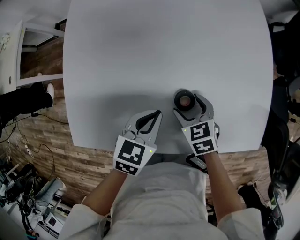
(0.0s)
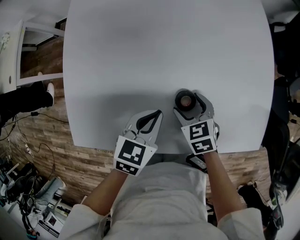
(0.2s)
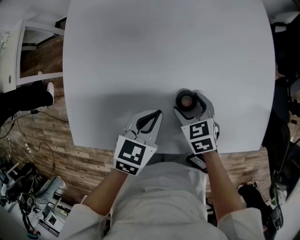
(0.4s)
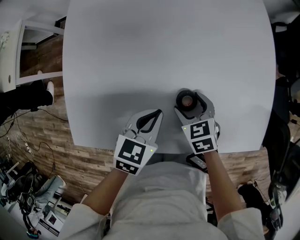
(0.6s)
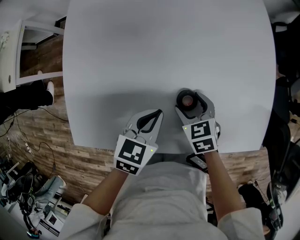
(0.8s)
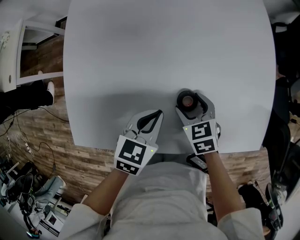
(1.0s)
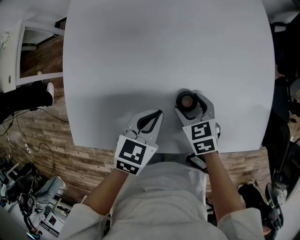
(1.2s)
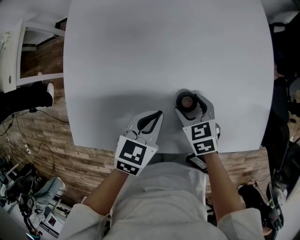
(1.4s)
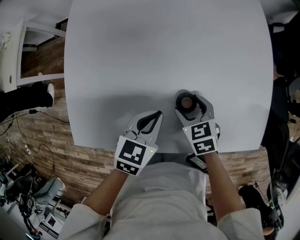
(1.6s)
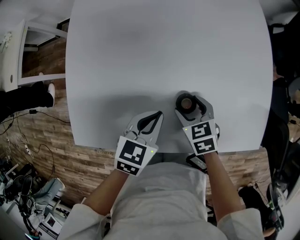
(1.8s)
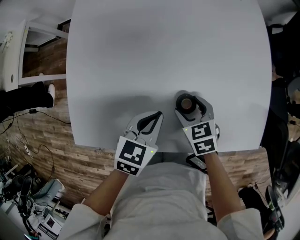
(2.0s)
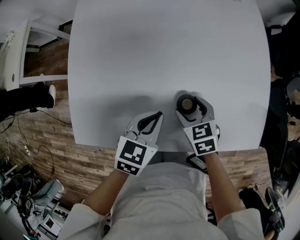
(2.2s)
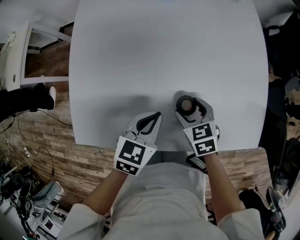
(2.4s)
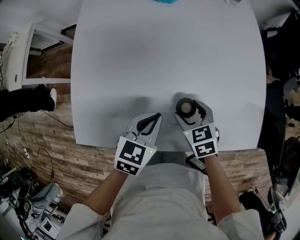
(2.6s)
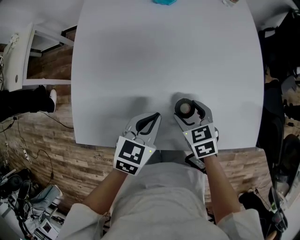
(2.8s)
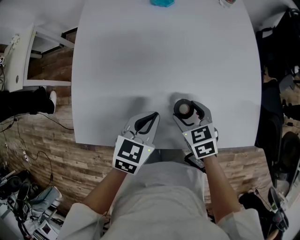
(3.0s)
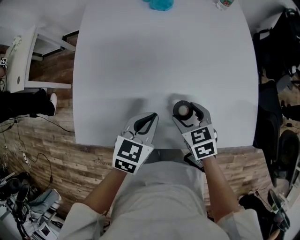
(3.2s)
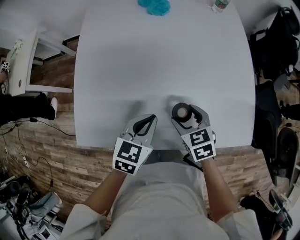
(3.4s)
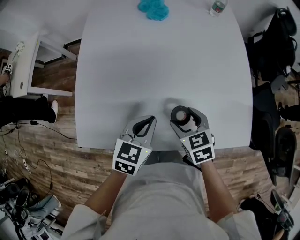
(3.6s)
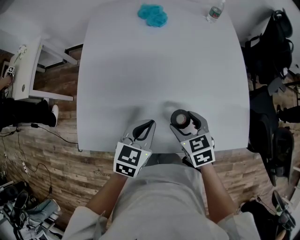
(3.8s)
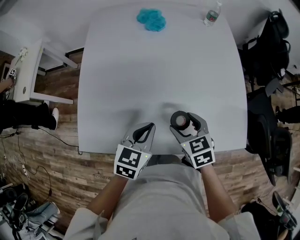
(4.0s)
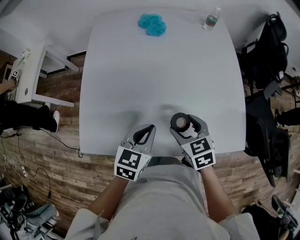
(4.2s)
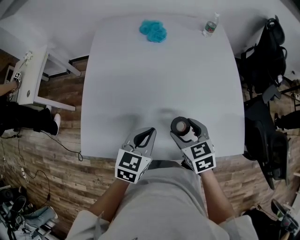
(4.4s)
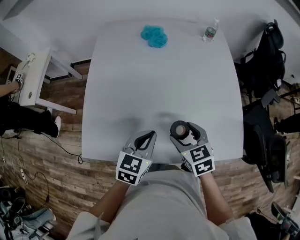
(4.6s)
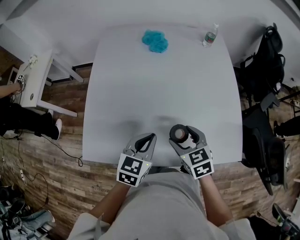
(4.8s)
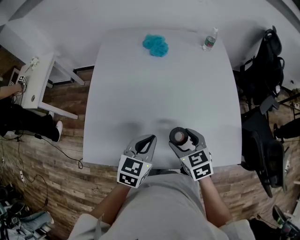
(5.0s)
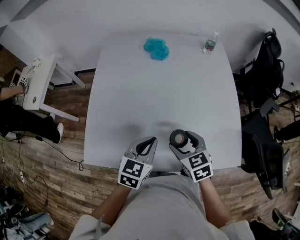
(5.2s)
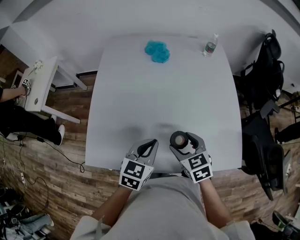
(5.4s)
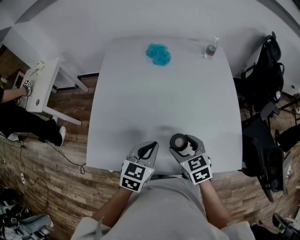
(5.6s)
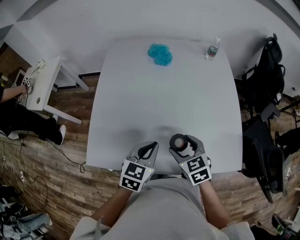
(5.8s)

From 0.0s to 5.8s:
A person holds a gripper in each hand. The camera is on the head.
From 0.0s to 1.4s: The two grippers keep their place.
From 1.4s to 2.8s: The right gripper changes place by about 5 cm.
From 2.8s to 4.4s: Both grippers move upward, some 10 cm.
From 4.4s to 5.8s: The grippers make only small movements.

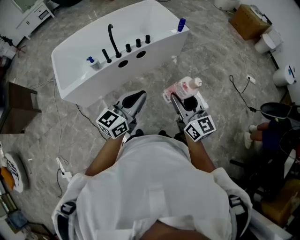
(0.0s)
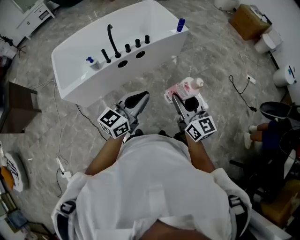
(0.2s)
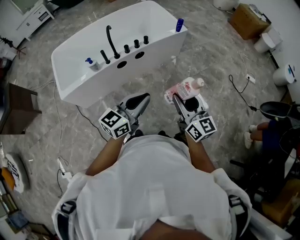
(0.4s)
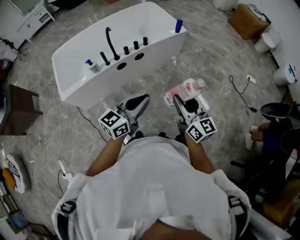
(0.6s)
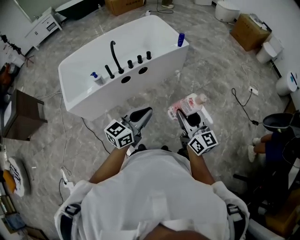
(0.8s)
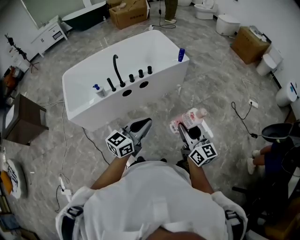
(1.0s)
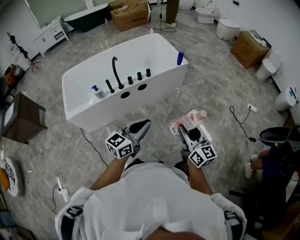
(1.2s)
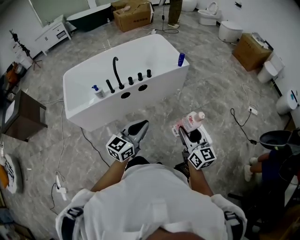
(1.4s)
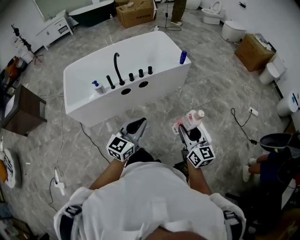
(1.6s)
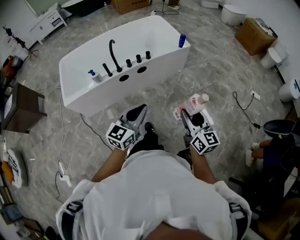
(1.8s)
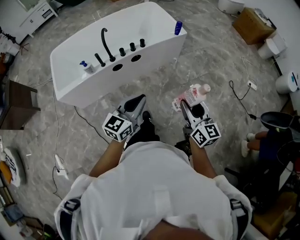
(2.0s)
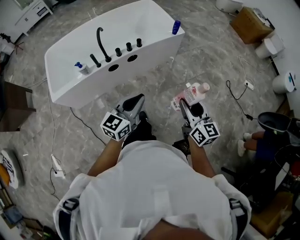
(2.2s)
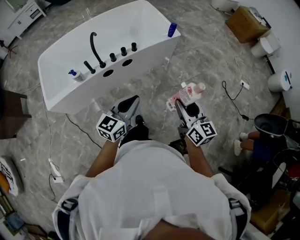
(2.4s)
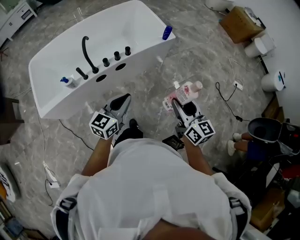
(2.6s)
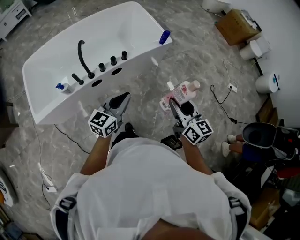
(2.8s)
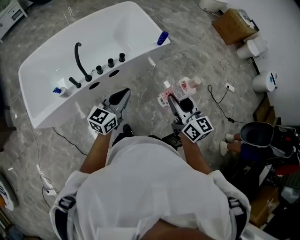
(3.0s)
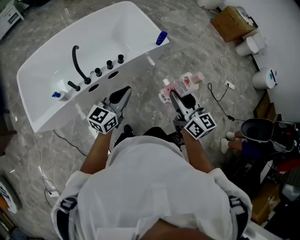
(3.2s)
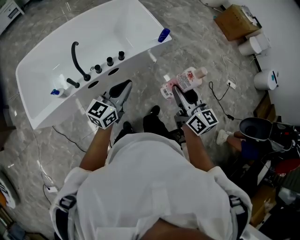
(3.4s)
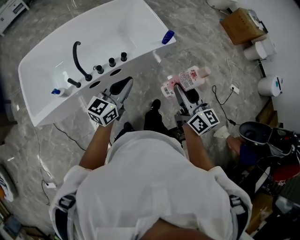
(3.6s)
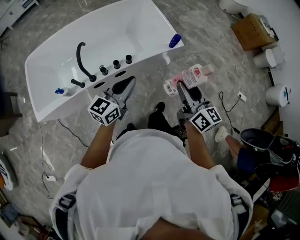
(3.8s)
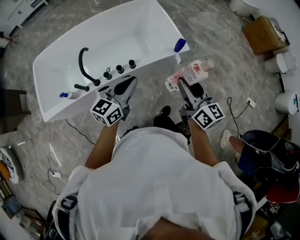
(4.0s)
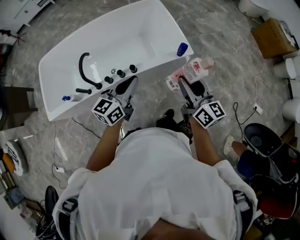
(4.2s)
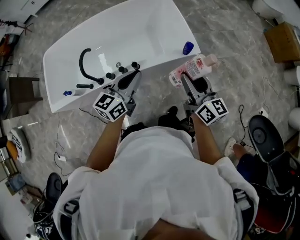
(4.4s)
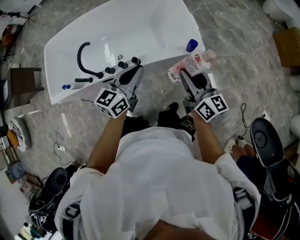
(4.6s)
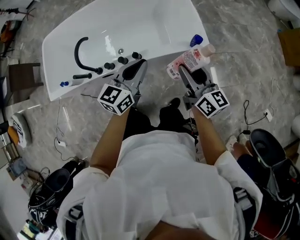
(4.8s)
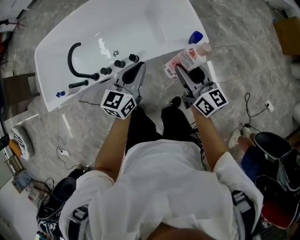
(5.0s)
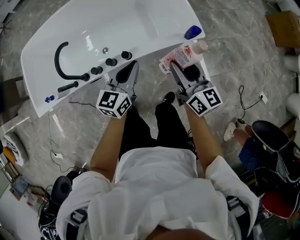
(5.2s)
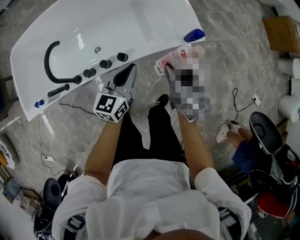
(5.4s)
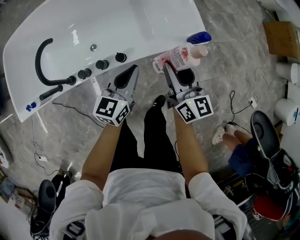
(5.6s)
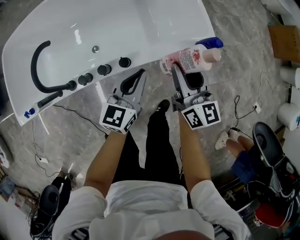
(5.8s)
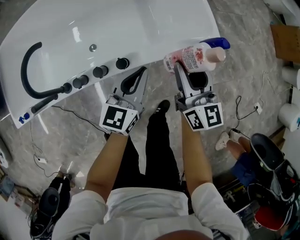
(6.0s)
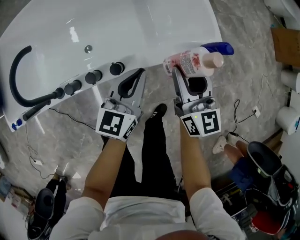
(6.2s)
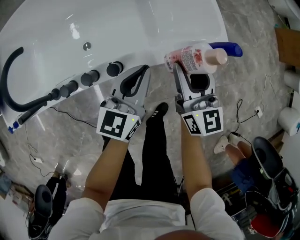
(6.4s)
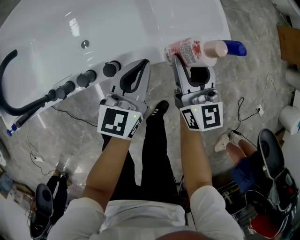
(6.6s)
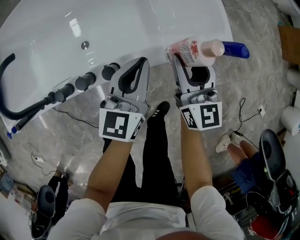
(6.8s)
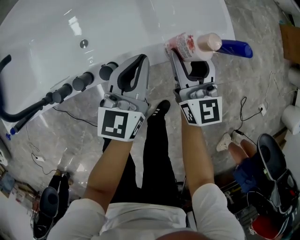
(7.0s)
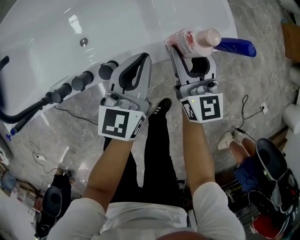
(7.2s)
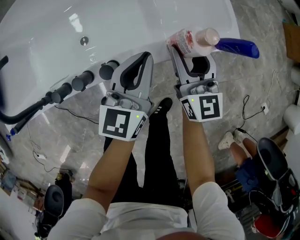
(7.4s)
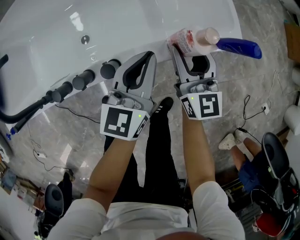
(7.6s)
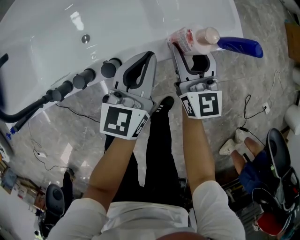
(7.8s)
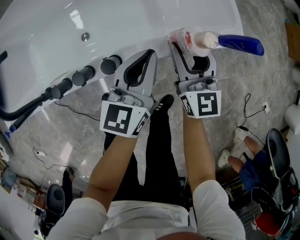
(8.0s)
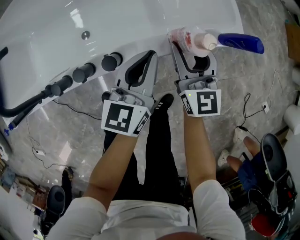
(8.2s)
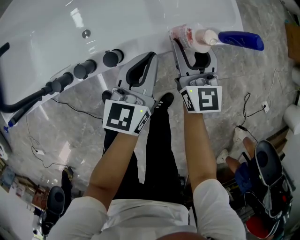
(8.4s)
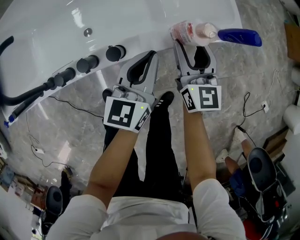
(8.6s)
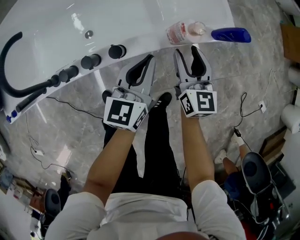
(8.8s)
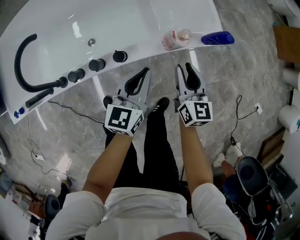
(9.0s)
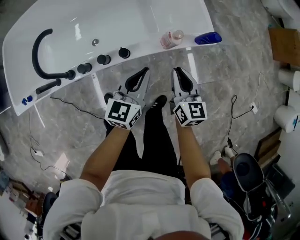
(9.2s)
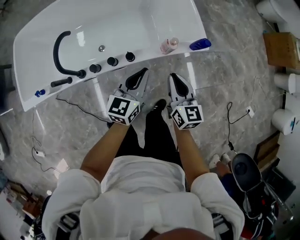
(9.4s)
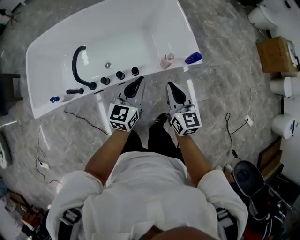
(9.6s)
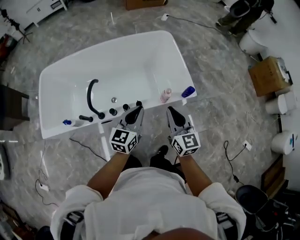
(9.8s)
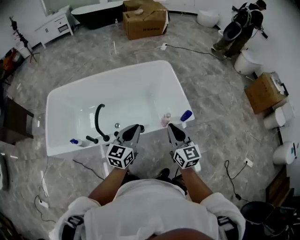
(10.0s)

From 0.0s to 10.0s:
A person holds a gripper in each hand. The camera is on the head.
From 0.0s to 1.4s: The left gripper travels to the right by roughly 10 cm. Meanwhile the right gripper moves to the right, approximately 10 cm.
From 1.4s to 2.8s: The grippers both shift forward by approximately 25 cm.
From 2.8s to 4.2s: Both grippers travel together forward, approximately 30 cm.
From 4.2s to 5.8s: The grippers both shift downward and forward by roughly 30 cm.
From 5.8s to 7.2s: The two grippers go about 15 cm downward and forward.
From 7.2s to 8.6s: The grippers stay close to where they were, moving slightly.
From 8.6s to 10.0s: The right gripper goes about 40 cm upward and backward, and closes up. The left gripper moves upward, some 35 cm.

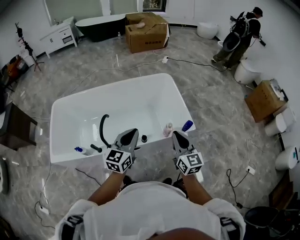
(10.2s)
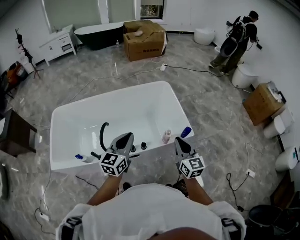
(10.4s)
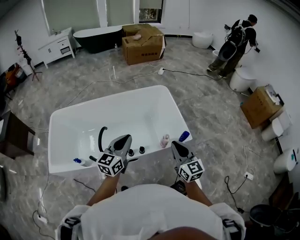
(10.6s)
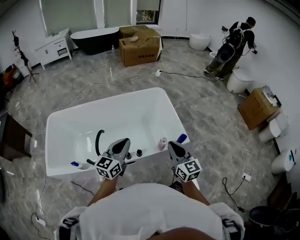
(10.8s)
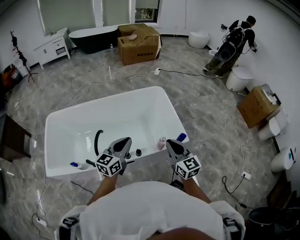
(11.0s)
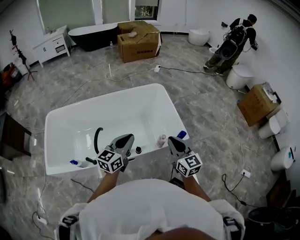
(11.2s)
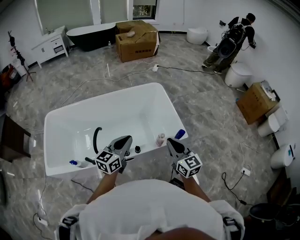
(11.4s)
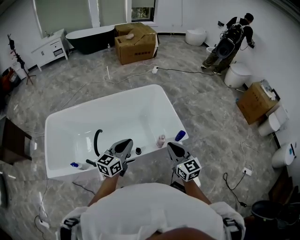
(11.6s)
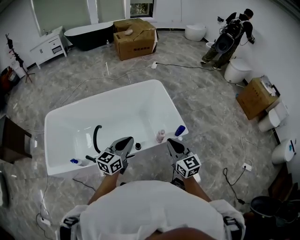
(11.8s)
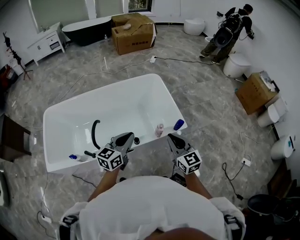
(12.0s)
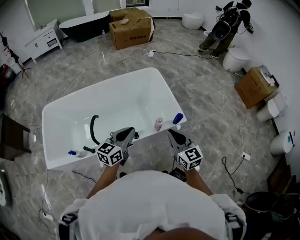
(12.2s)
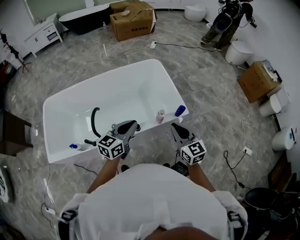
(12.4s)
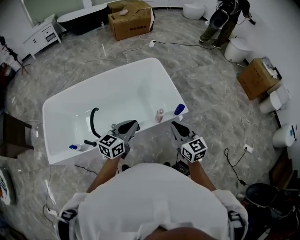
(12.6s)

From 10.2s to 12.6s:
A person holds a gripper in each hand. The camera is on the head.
From 10.2s to 11.4s: The grippers make only small movements.
From 11.4s to 12.6s: The left gripper changes place by approximately 5 cm.

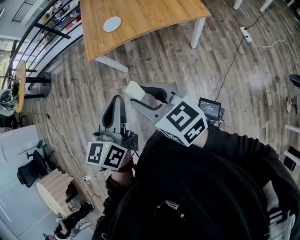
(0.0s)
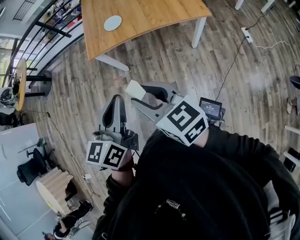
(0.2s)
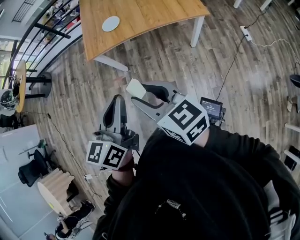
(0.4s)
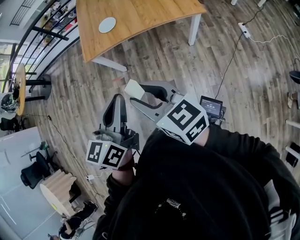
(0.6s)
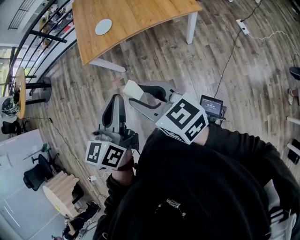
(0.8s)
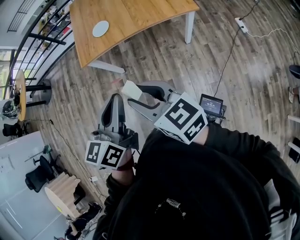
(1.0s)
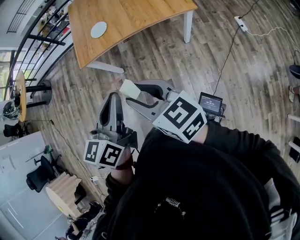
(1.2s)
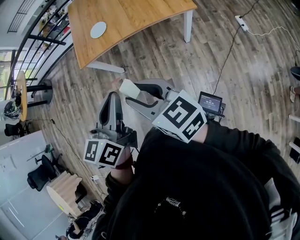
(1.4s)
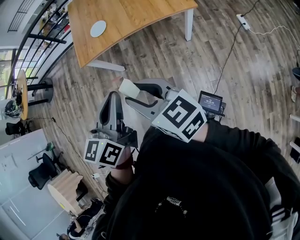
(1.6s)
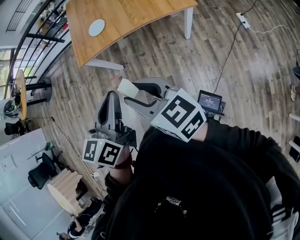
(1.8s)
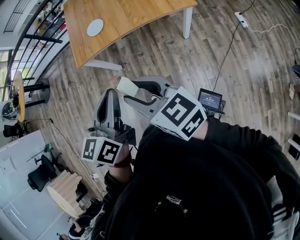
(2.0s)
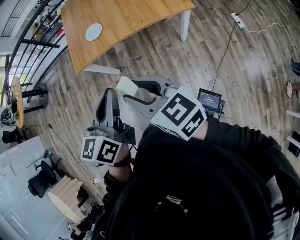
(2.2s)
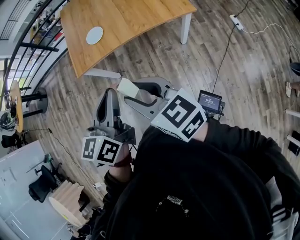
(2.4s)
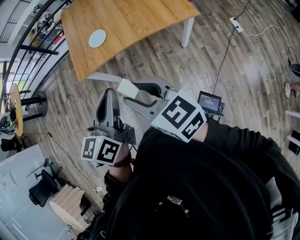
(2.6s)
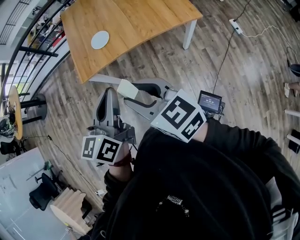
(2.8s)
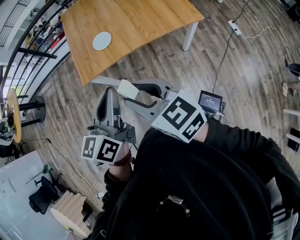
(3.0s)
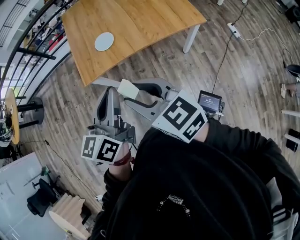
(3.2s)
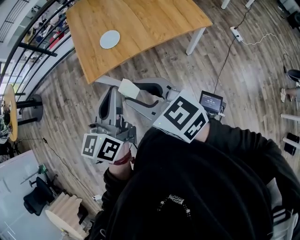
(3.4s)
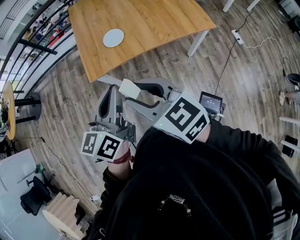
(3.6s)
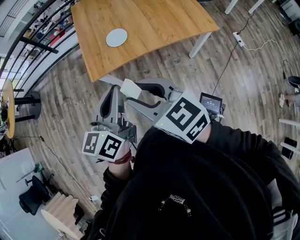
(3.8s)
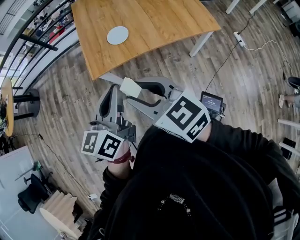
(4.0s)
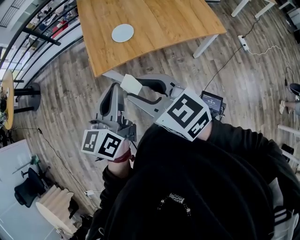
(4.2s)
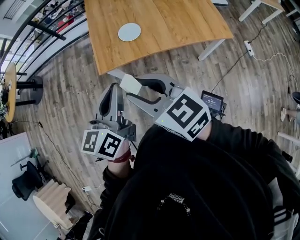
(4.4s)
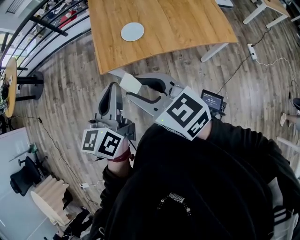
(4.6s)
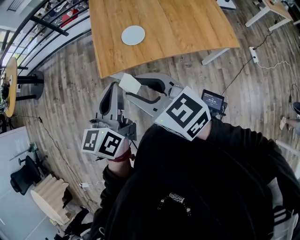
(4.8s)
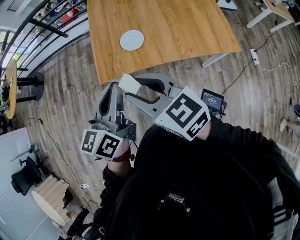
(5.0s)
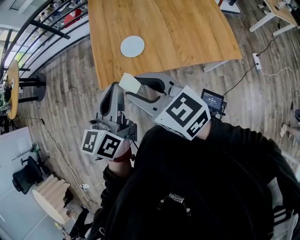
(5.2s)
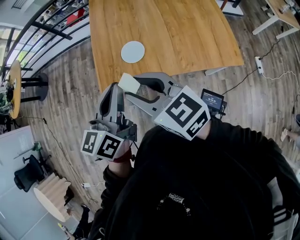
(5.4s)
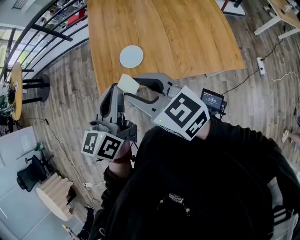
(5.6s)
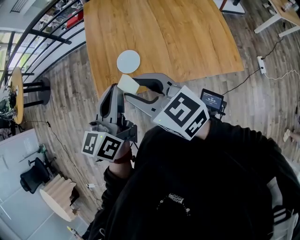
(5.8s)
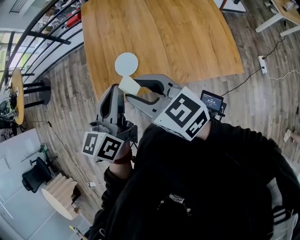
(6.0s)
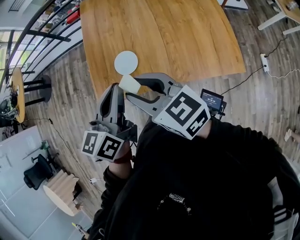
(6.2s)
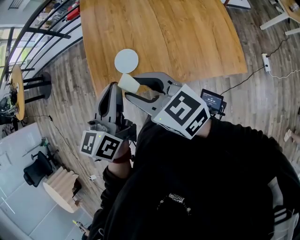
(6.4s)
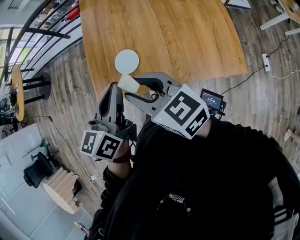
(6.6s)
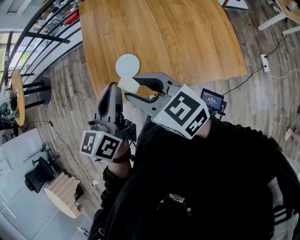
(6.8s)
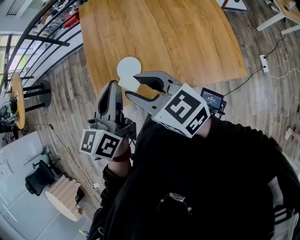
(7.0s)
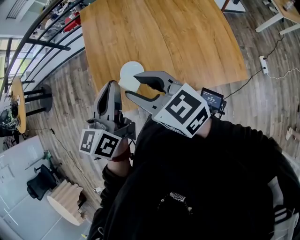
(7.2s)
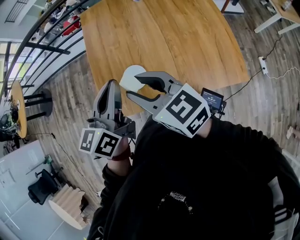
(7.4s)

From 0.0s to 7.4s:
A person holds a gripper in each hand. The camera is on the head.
From 0.0s to 1.4s: Both grippers travel together to the right, about 10 cm.
From 1.4s to 3.0s: Both grippers travel together forward and to the left, some 15 cm.
From 3.0s to 4.4s: The two grippers go some 15 cm to the left and forward.
From 4.4s to 6.0s: Both grippers move forward and to the right, about 30 cm.
From 6.0s to 7.4s: Both grippers travel together forward, some 10 cm.
